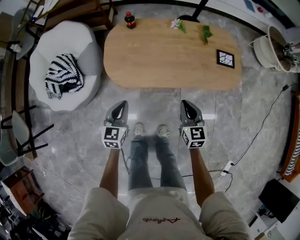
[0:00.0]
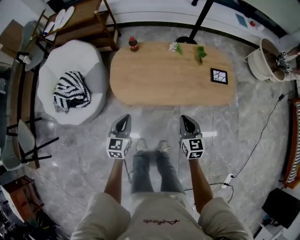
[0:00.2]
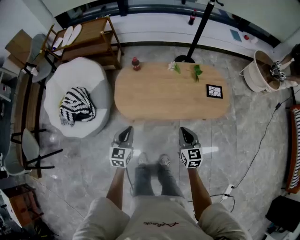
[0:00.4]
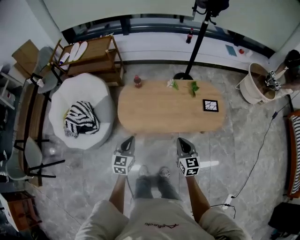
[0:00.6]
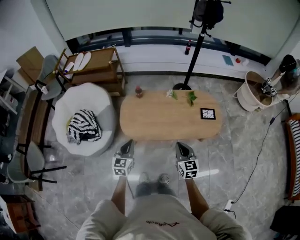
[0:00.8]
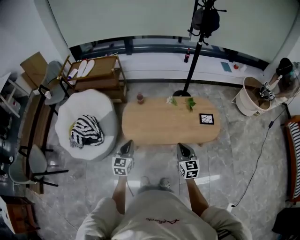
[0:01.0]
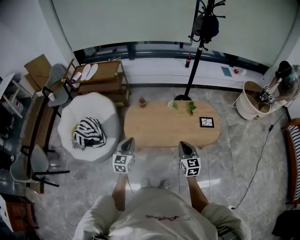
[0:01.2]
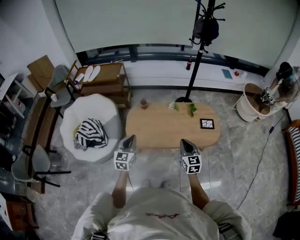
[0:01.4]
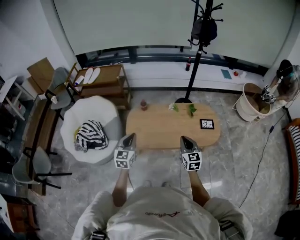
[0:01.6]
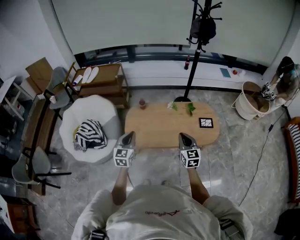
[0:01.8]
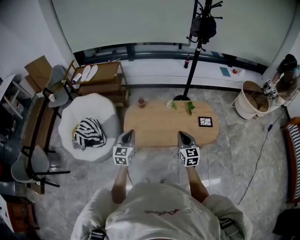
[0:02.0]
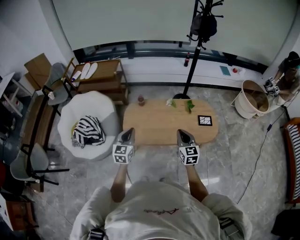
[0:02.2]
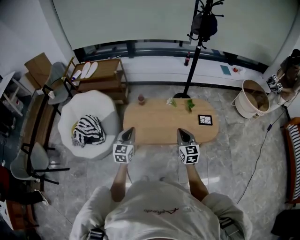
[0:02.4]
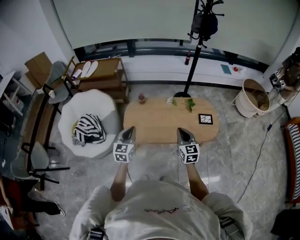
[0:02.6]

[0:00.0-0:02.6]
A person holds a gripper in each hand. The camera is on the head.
0.0 to 1.2 s: Both grippers travel together upward, some 30 cm.
1.2 to 2.6 s: The right gripper changes place by some 5 cm.

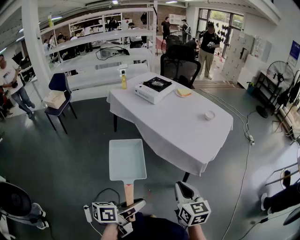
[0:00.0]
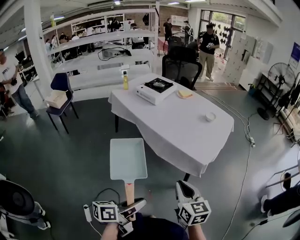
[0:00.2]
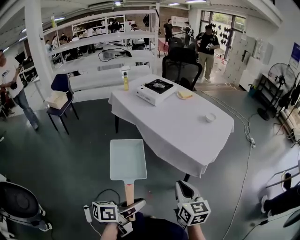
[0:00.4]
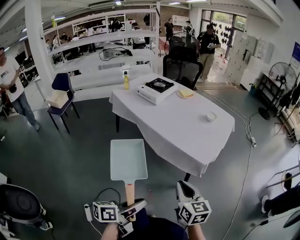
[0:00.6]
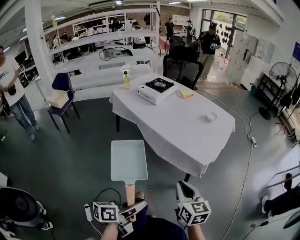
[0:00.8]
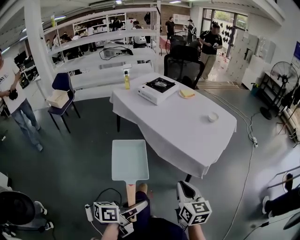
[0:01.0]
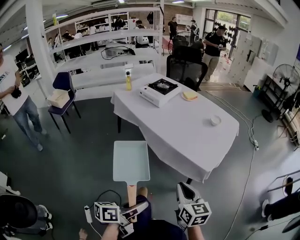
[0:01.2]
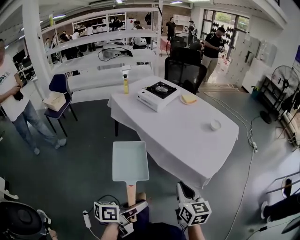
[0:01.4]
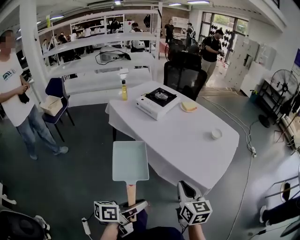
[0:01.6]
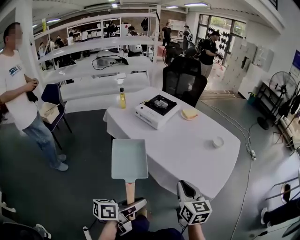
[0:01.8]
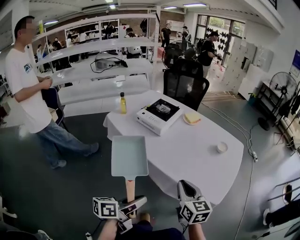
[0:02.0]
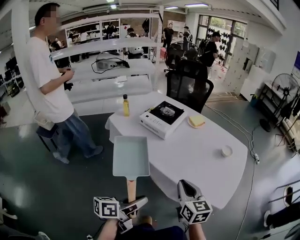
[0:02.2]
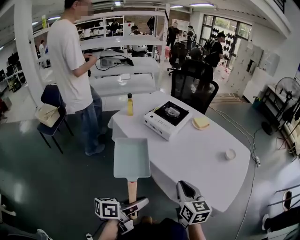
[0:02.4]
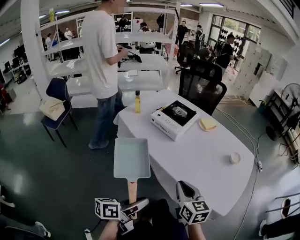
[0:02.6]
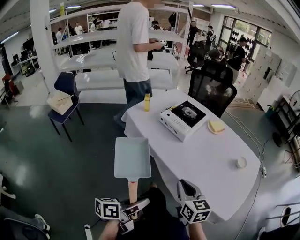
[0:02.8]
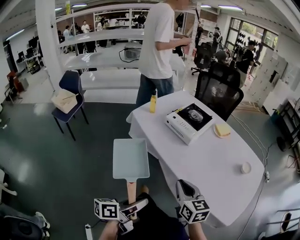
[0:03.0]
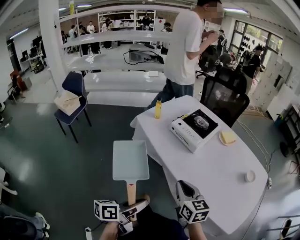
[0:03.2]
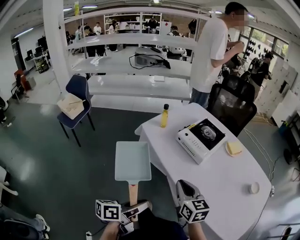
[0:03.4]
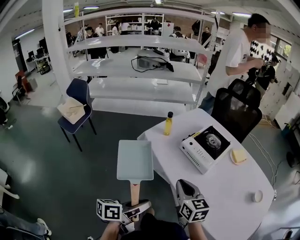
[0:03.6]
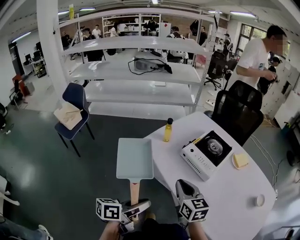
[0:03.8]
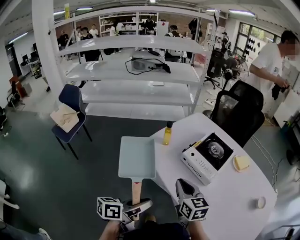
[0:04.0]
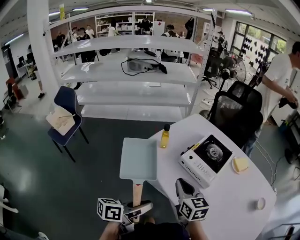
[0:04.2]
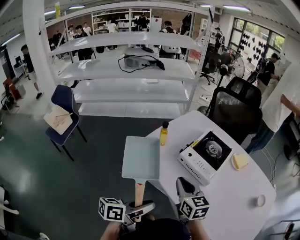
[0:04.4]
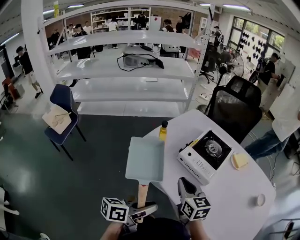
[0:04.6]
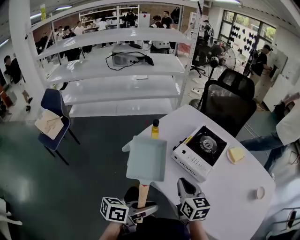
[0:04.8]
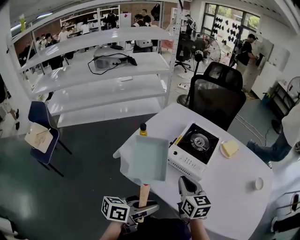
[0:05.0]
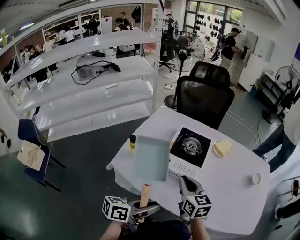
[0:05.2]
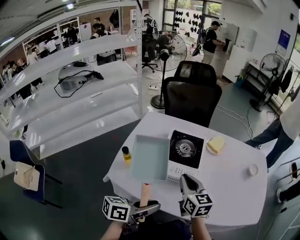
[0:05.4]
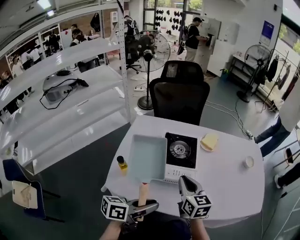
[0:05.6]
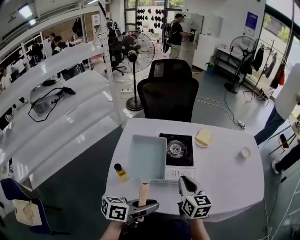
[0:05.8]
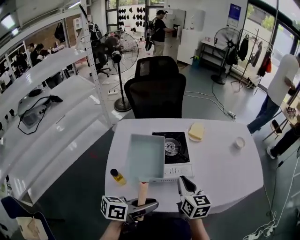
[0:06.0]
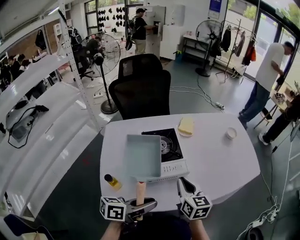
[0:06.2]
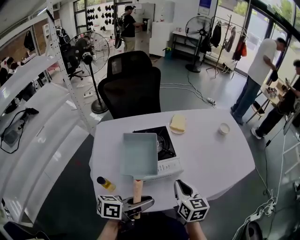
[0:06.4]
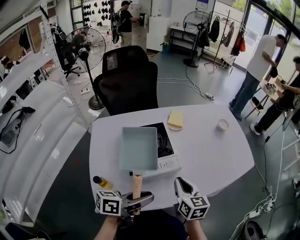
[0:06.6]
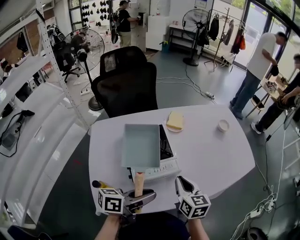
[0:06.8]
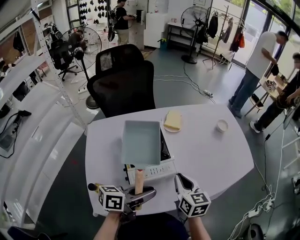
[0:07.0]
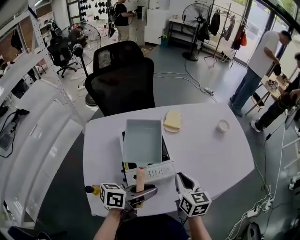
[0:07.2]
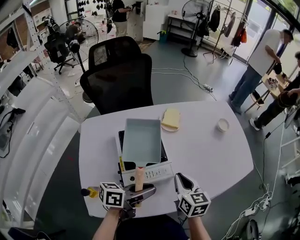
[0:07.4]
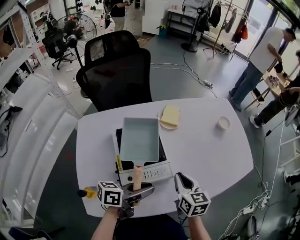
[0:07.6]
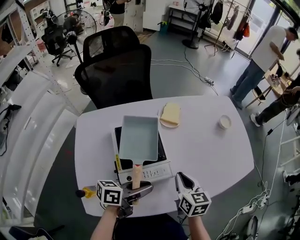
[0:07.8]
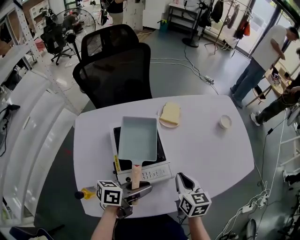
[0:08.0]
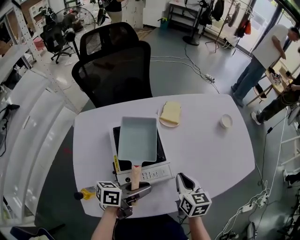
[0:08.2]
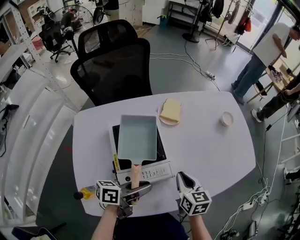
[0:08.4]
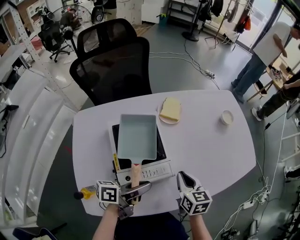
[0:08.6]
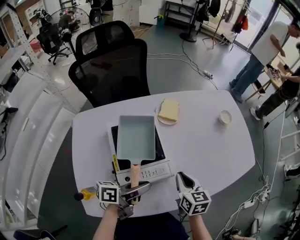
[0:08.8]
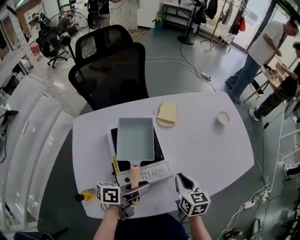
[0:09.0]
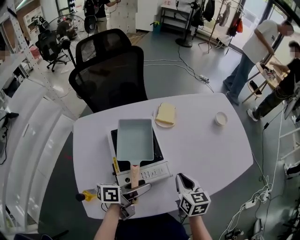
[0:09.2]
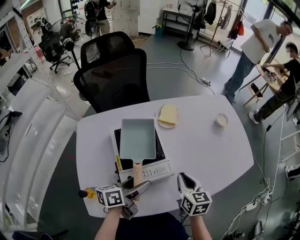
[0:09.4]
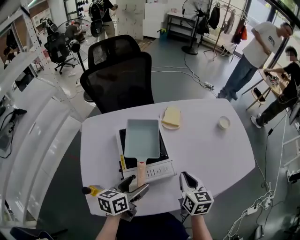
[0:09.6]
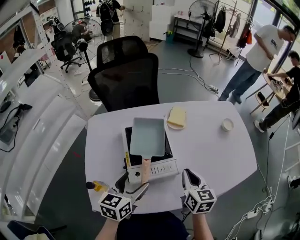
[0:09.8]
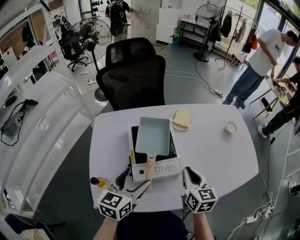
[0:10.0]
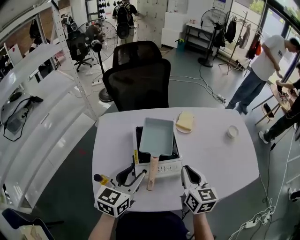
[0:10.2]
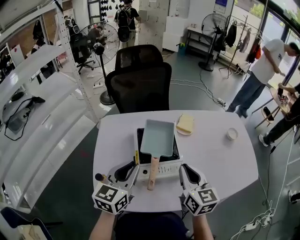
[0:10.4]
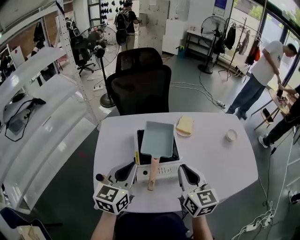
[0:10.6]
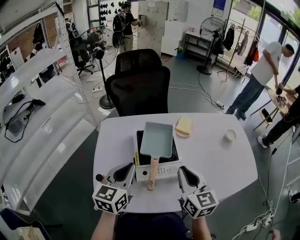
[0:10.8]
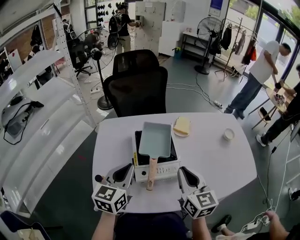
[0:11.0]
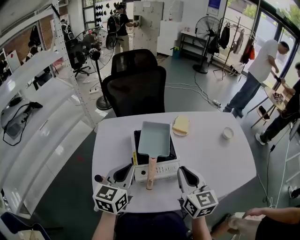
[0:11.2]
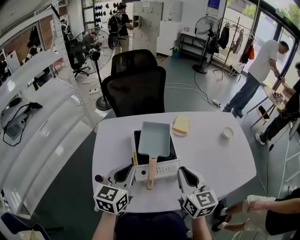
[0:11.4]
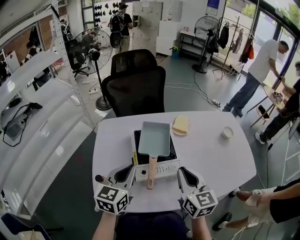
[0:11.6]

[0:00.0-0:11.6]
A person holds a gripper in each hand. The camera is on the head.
0.0 to 1.4 s: The two grippers go some 10 cm forward.
1.4 to 2.8 s: The two grippers go roughly 30 cm to the left and forward.
2.8 to 4.4 s: The two grippers go roughly 30 cm forward and to the left.
4.4 to 5.8 s: The right gripper changes place by roughly 15 cm, and turns by some 50 degrees. Meanwhile the left gripper changes place by about 20 cm, and changes its angle by roughly 50 degrees.
5.8 to 7.2 s: The left gripper moves forward, some 15 cm, while the right gripper moves to the right and forward, some 10 cm, and changes its angle by approximately 20 degrees.
7.2 to 8.8 s: Both grippers travel together downward, roughly 5 cm.
8.8 to 10.2 s: The right gripper heads upward and to the left, covering approximately 10 cm. The left gripper travels to the left and upward by approximately 15 cm, rotates about 70 degrees, and opens, then closes again.
10.2 to 11.6 s: The right gripper ends up about 5 cm from where it was. Meanwhile the left gripper closes up.

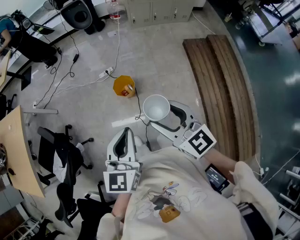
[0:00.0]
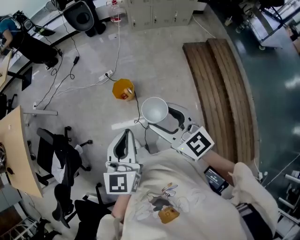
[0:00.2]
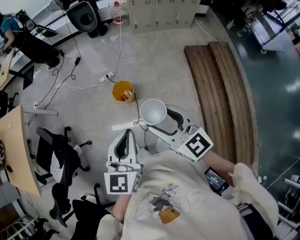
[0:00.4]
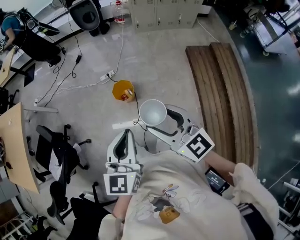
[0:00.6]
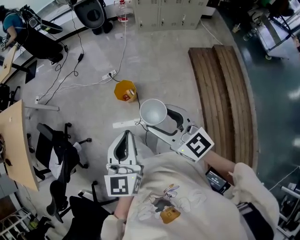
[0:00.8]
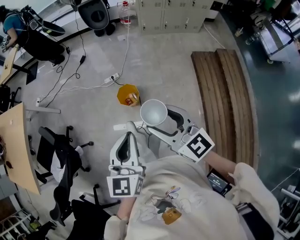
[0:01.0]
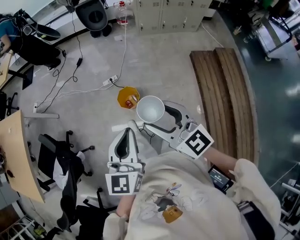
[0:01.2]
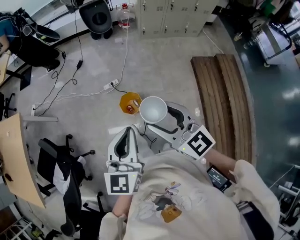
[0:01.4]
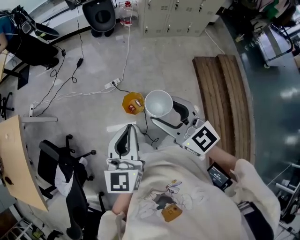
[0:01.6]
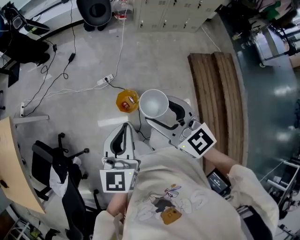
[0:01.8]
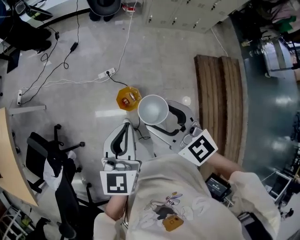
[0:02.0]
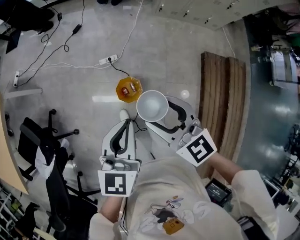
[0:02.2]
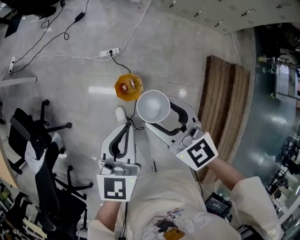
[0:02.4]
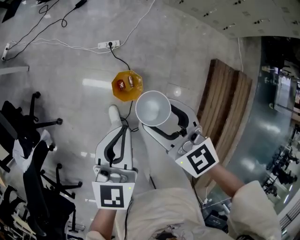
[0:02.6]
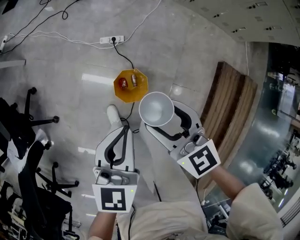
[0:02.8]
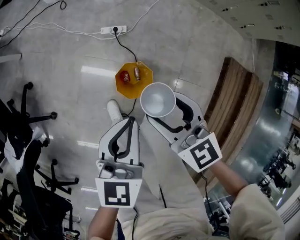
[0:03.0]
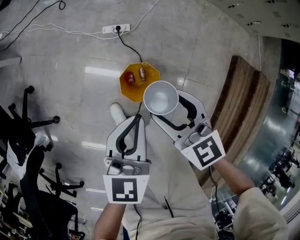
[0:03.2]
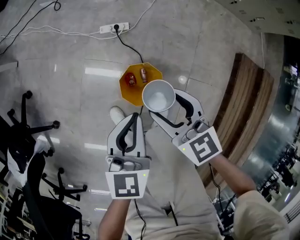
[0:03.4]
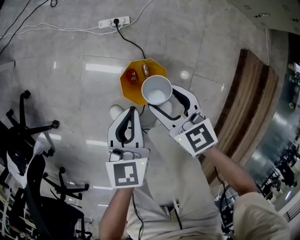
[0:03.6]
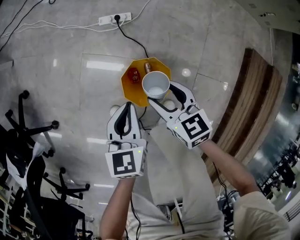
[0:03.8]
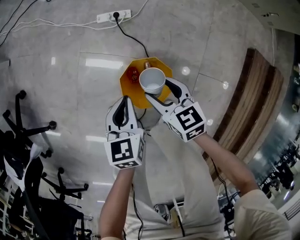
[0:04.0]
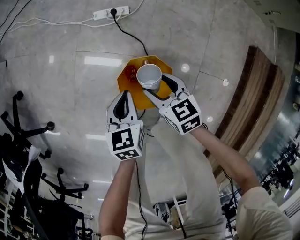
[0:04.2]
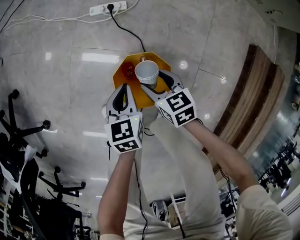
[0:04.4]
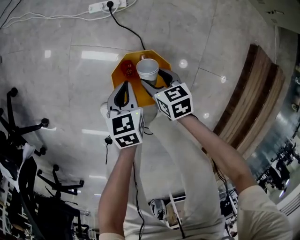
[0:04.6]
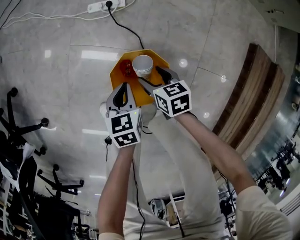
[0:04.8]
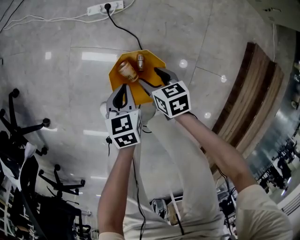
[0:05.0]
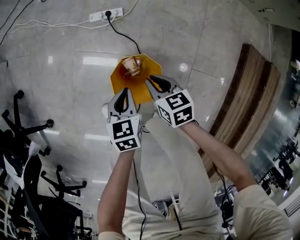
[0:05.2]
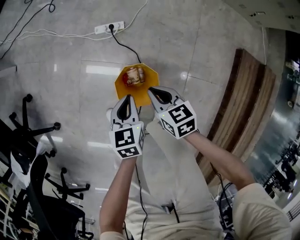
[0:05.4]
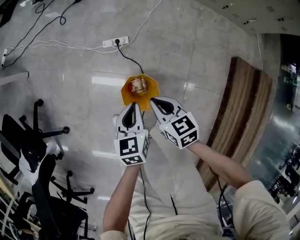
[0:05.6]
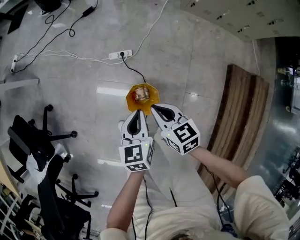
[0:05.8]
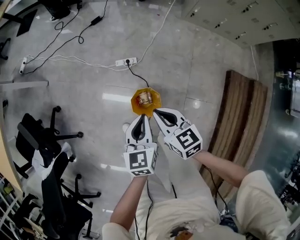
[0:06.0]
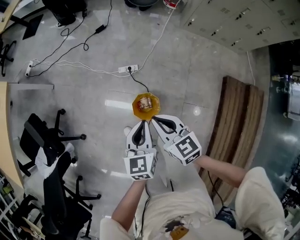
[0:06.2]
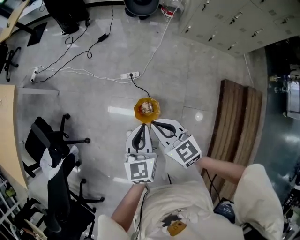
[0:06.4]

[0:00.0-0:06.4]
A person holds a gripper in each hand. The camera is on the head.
0.0 to 1.6 s: The two grippers go some 25 cm forward.
1.6 to 3.2 s: Both grippers move downward and forward, approximately 50 cm. The left gripper turns by about 20 degrees, while the right gripper swivels approximately 30 degrees.
3.2 to 4.8 s: Both grippers travel together downward, roughly 40 cm. The left gripper rotates some 30 degrees; the right gripper changes its angle by approximately 40 degrees.
4.8 to 6.4 s: Both grippers move upward, approximately 60 cm. The left gripper turns by approximately 30 degrees; the right gripper rotates about 40 degrees, and closes.

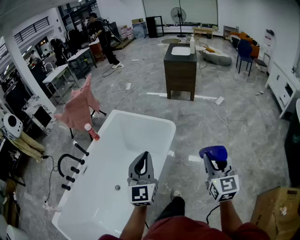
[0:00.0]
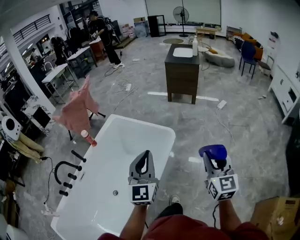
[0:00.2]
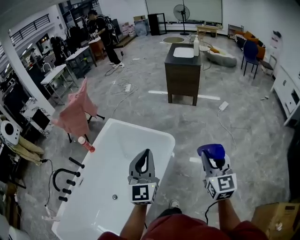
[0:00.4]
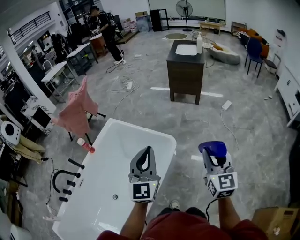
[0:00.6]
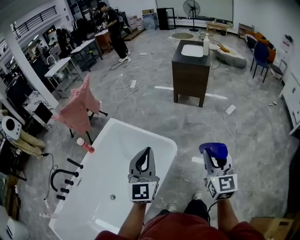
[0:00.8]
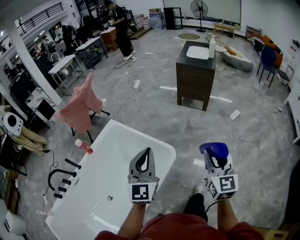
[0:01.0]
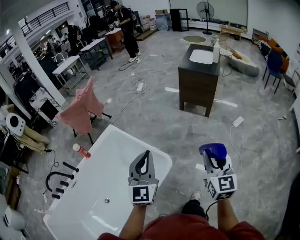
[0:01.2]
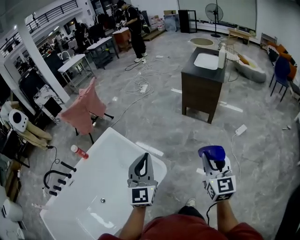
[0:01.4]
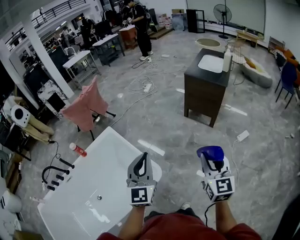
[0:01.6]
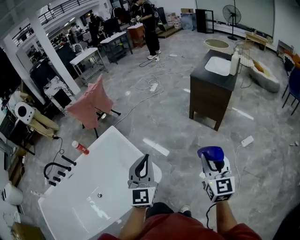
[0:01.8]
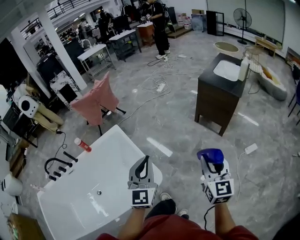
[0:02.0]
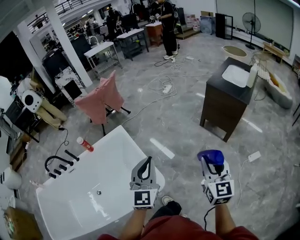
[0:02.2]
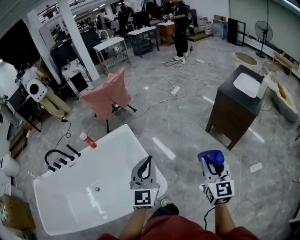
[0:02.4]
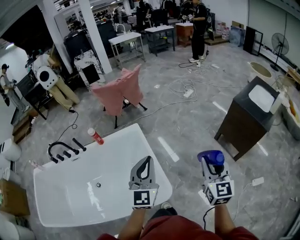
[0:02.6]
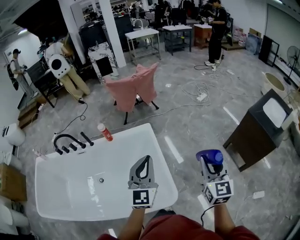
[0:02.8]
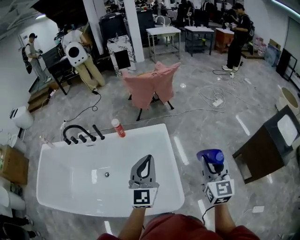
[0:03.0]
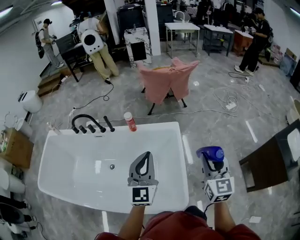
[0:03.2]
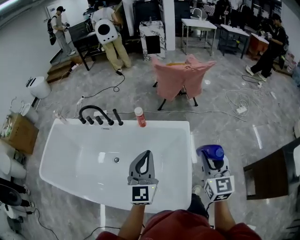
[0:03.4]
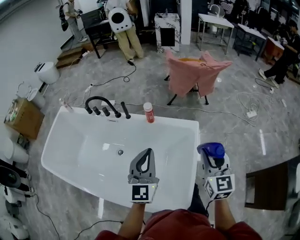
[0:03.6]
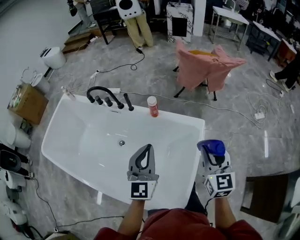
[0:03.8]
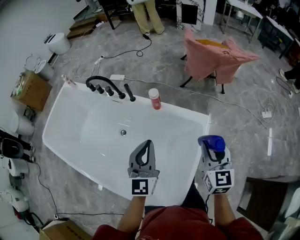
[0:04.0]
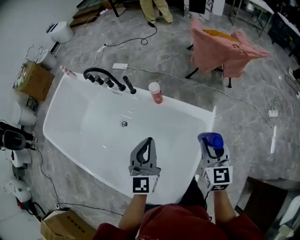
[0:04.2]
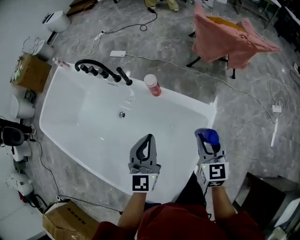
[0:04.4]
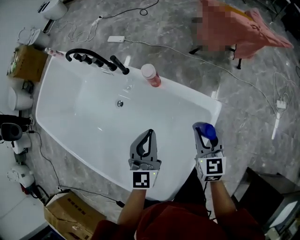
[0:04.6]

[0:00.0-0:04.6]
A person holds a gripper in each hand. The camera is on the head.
0.0 to 1.6 s: The pair of grippers is taken forward and to the right, some 60 cm.
1.6 to 3.0 s: The right gripper moves roughly 40 cm, and swivels roughly 40 degrees. Meanwhile the left gripper shifts by some 30 cm, and rotates about 40 degrees.
3.0 to 4.6 s: The right gripper ends up roughly 50 cm from where it was, and turns by about 40 degrees. The left gripper ends up about 40 cm from where it was, and swivels about 40 degrees.
